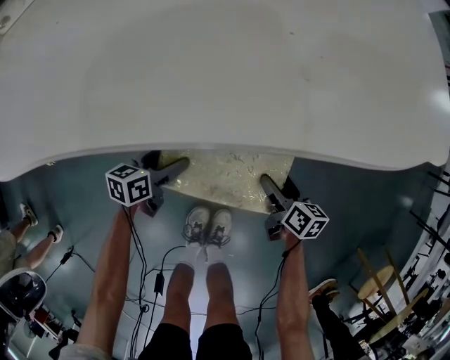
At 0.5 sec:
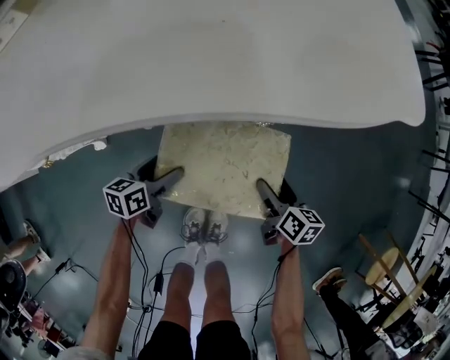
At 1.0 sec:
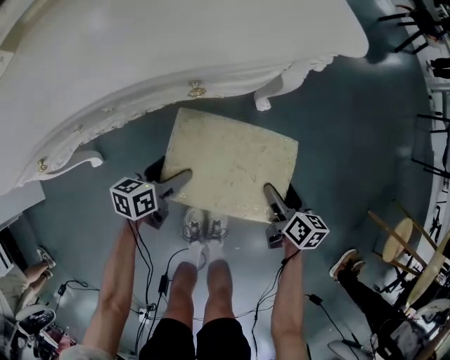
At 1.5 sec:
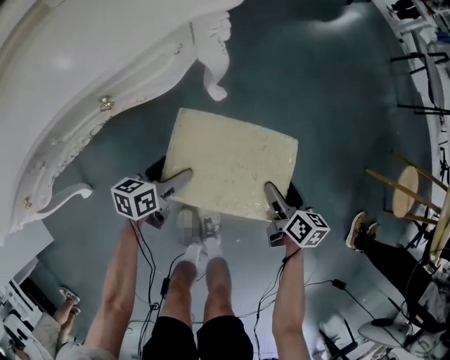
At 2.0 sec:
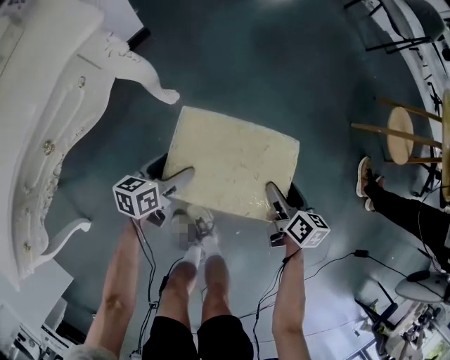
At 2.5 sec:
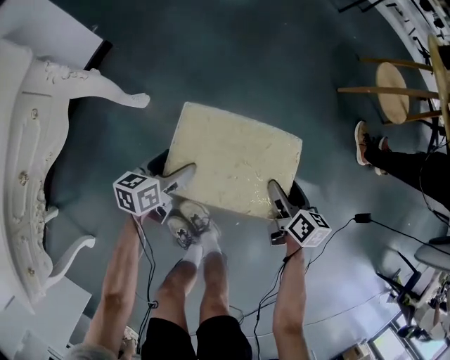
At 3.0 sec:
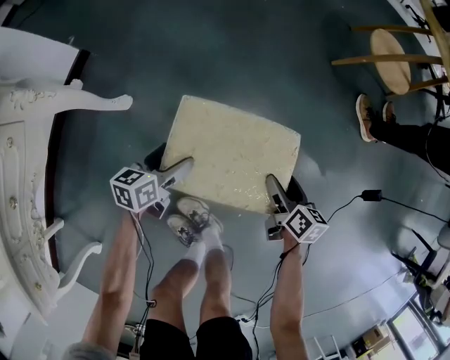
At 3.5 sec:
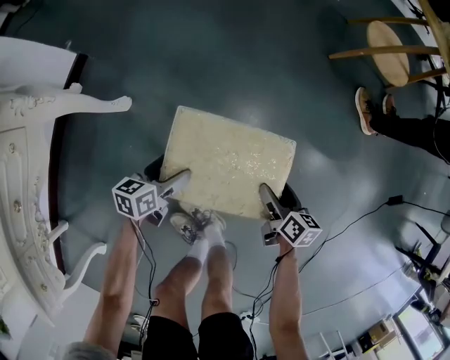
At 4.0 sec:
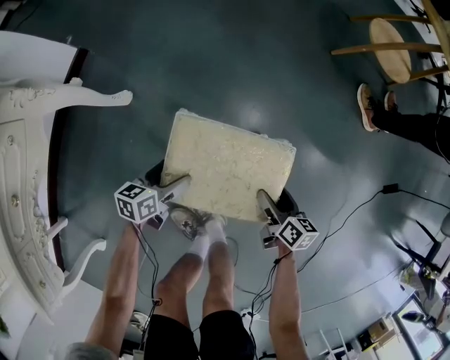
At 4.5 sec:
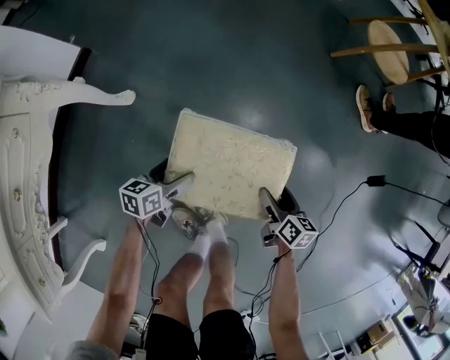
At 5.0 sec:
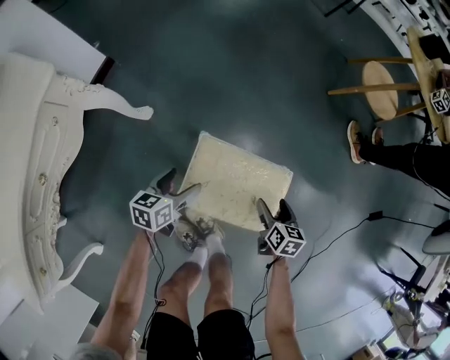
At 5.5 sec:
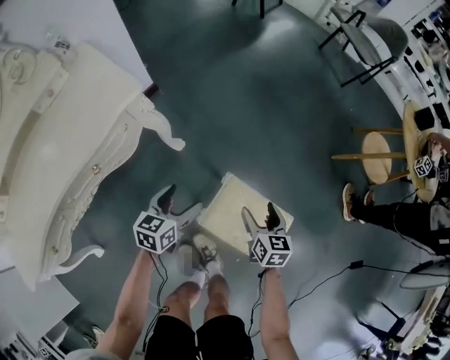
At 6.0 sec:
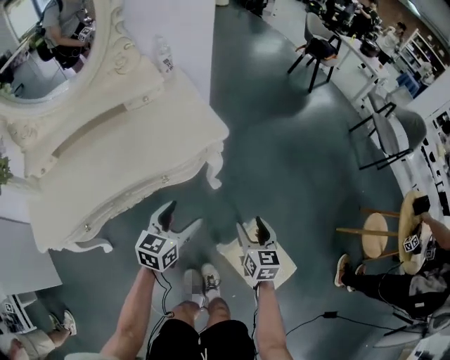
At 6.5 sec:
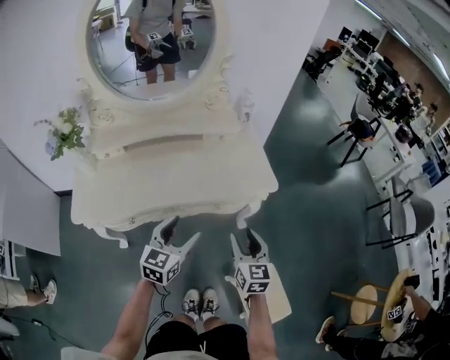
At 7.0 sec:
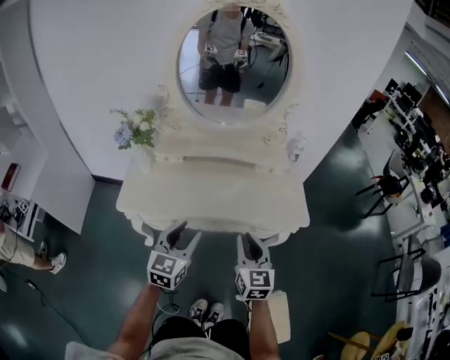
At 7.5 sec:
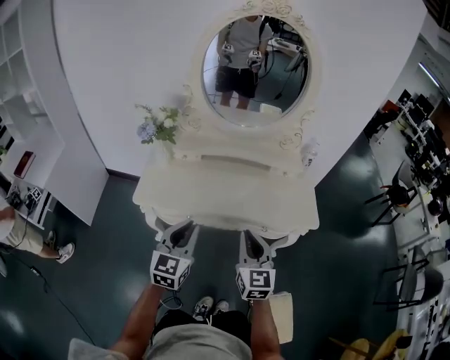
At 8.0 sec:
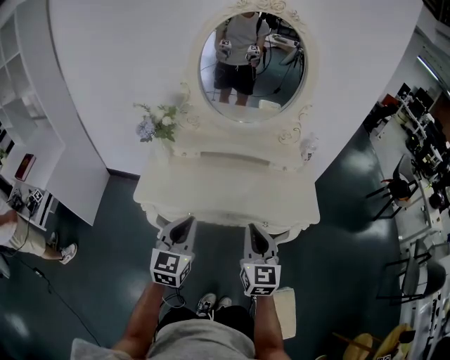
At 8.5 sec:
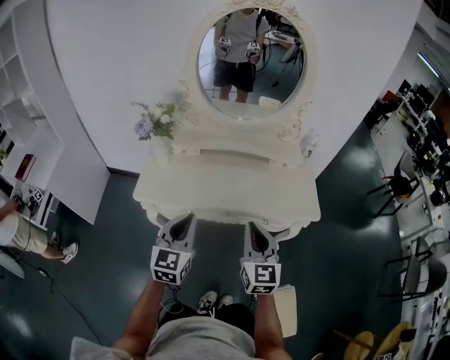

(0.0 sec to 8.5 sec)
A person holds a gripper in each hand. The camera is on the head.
0.0 sec - 2.0 sec: The two grippers travel together, roughly 40 cm. The right gripper rotates some 50 degrees. Meanwhile the left gripper swivels about 40 degrees.
2.0 sec - 4.0 sec: The left gripper goes about 15 cm to the right and downward, and rotates approximately 20 degrees; the right gripper is displaced to the right, backward and downward by some 20 cm.
4.0 sec - 6.5 sec: Both grippers are carried about 50 cm. Both grippers travel together upward, about 50 cm. The right gripper twists about 70 degrees counterclockwise, seen from behind, and closes; the left gripper swivels some 70 degrees.
6.5 sec - 8.5 sec: Both grippers travel together to the left and upward, roughly 25 cm. The left gripper turns by some 30 degrees, and closes up, while the right gripper changes its angle by some 20 degrees, and closes up.

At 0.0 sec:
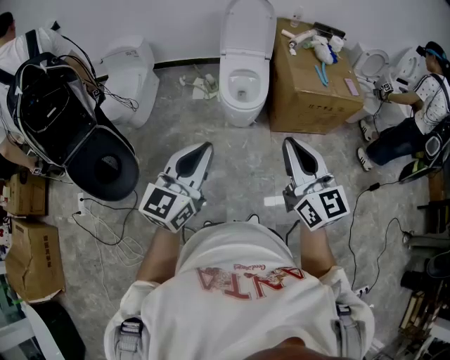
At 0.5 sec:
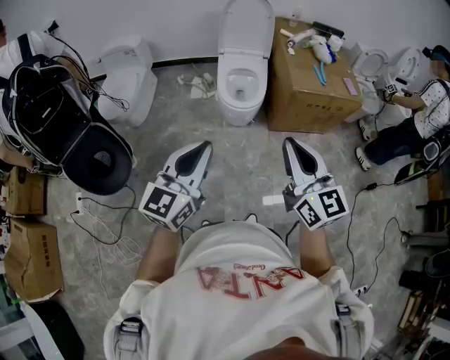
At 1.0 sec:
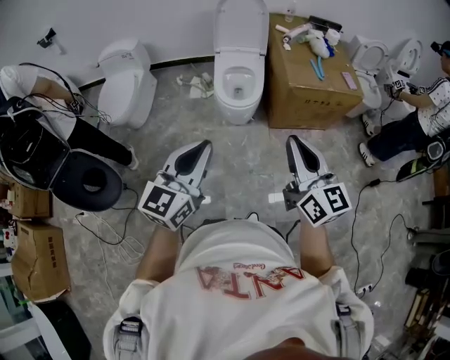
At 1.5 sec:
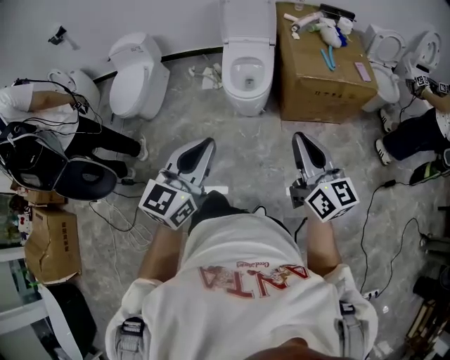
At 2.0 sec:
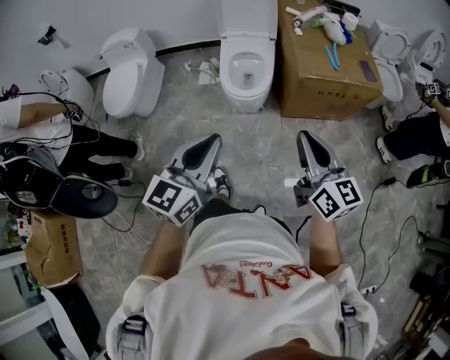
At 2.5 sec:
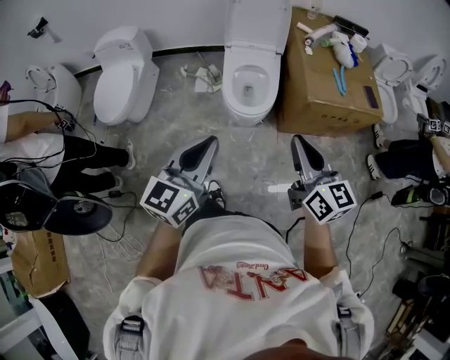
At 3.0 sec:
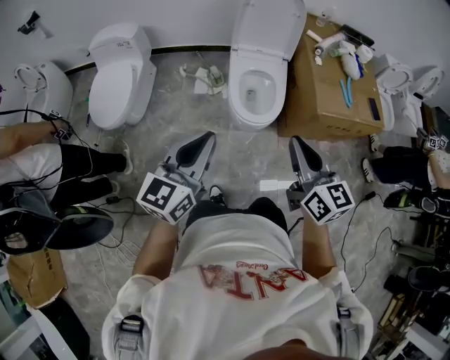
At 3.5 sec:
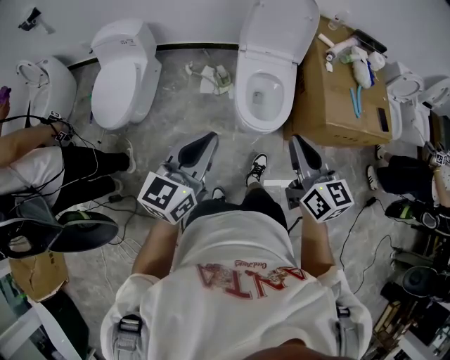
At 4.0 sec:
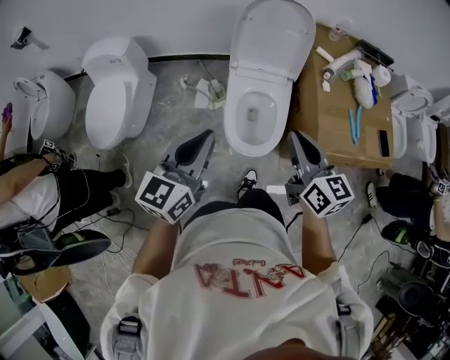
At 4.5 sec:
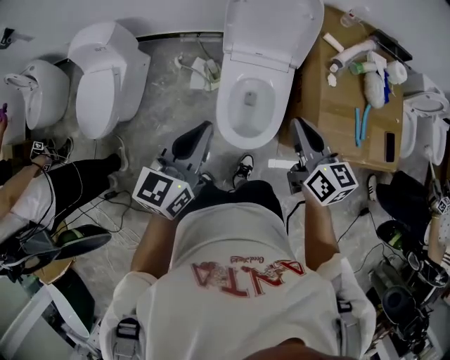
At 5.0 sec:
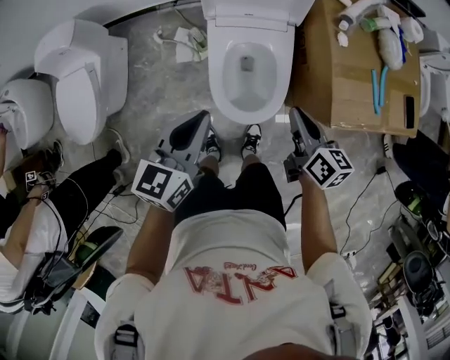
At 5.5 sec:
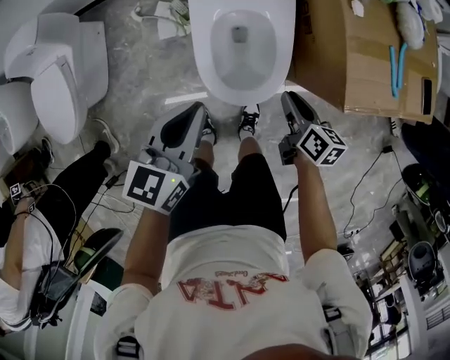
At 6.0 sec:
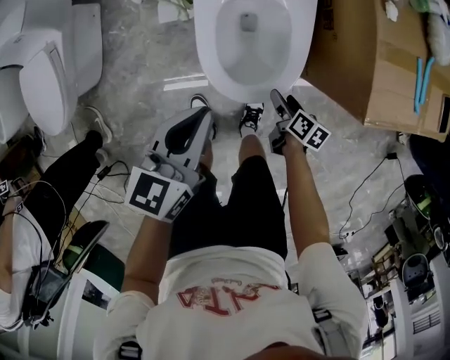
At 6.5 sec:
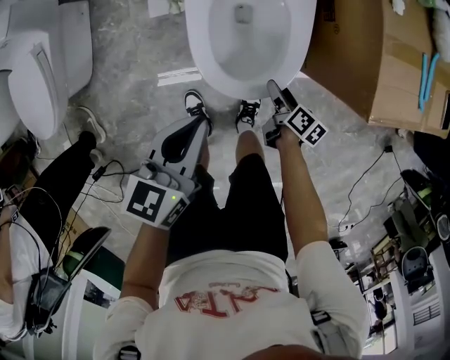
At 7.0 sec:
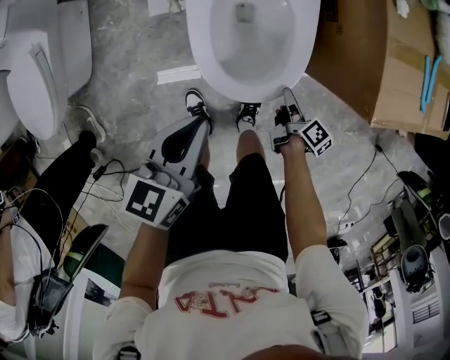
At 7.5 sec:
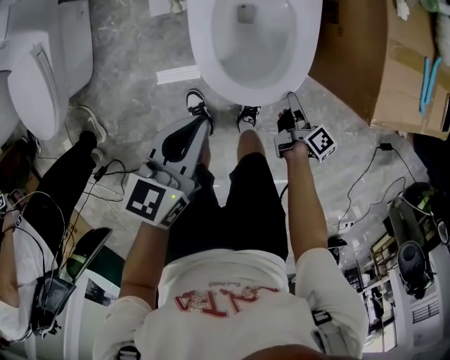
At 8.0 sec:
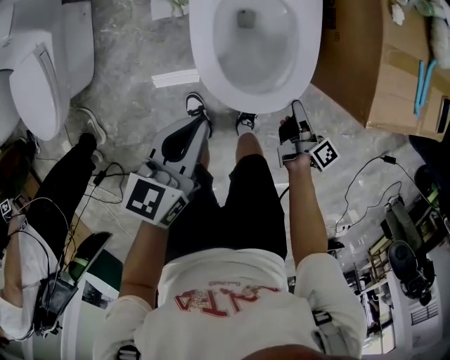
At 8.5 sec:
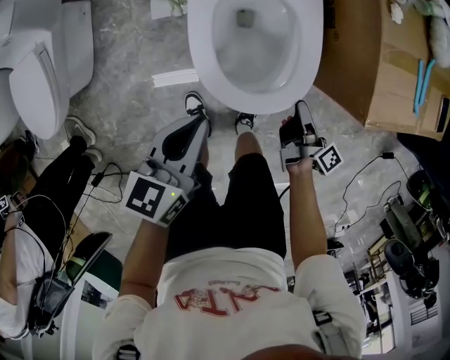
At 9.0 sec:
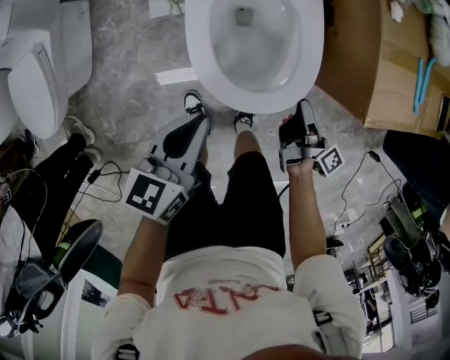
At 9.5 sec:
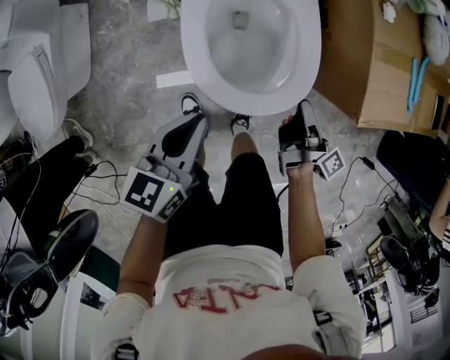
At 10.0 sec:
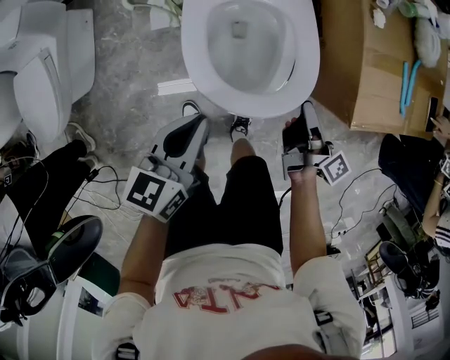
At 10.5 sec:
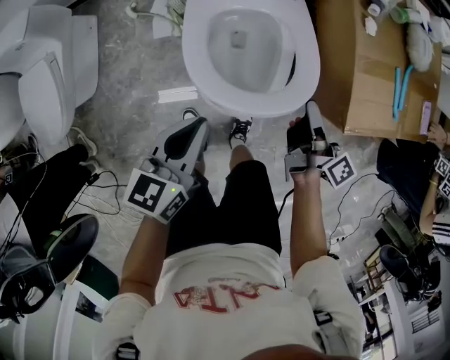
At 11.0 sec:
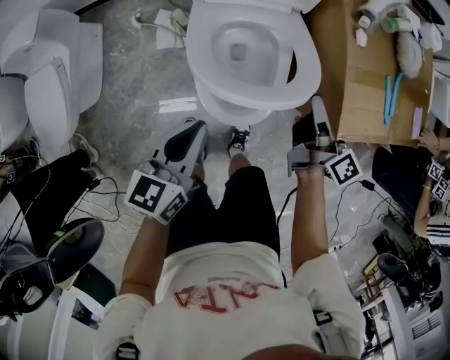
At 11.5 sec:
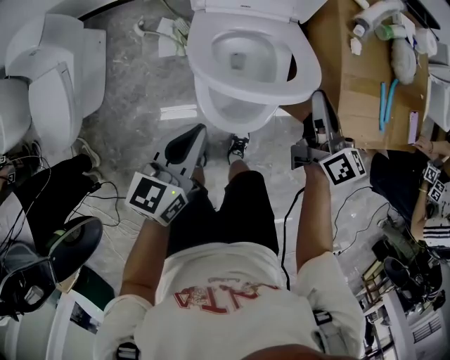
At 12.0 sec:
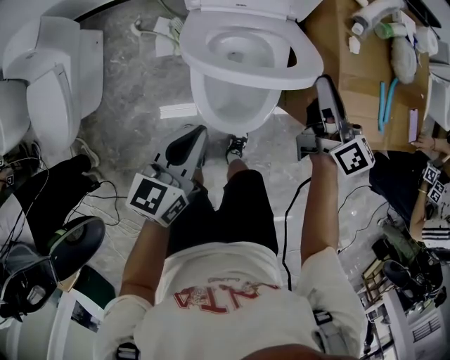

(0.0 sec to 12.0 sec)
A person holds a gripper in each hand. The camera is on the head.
0.0 sec - 2.0 sec: The left gripper moves to the right and forward, roughly 15 cm. Meanwhile the right gripper is displaced to the right, forward and downward by some 20 cm.
2.0 sec - 4.0 sec: Both grippers are carried forward, roughly 40 cm.
4.0 sec - 6.0 sec: The right gripper goes about 60 cm downward, tilts its fingers some 40 degrees downward, and opens its fingers. The left gripper is displaced downward by about 35 cm, and turns by roughly 30 degrees.
6.0 sec - 8.0 sec: The right gripper shifts roughly 5 cm upward, rotates approximately 40 degrees, and closes its fingers.
8.0 sec - 10.0 sec: The right gripper moves upward and forward, about 15 cm.
10.0 sec - 12.0 sec: The right gripper goes roughly 20 cm upward and forward, and swivels about 40 degrees, while the left gripper moves upward, about 5 cm.

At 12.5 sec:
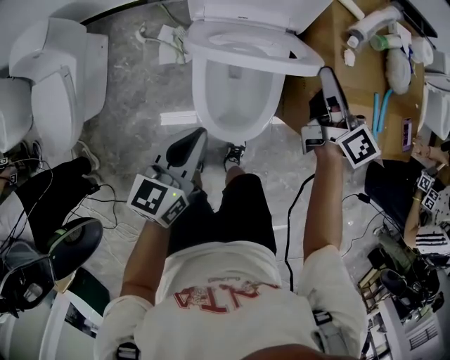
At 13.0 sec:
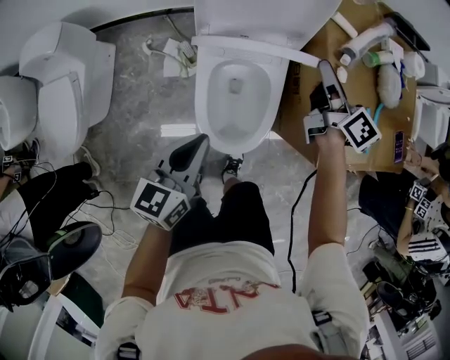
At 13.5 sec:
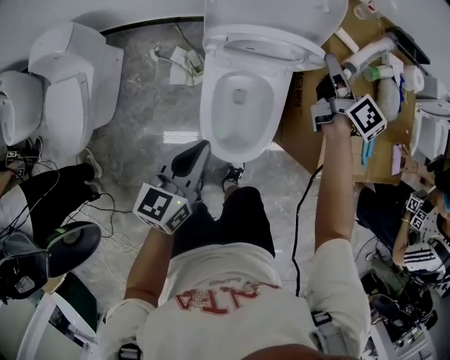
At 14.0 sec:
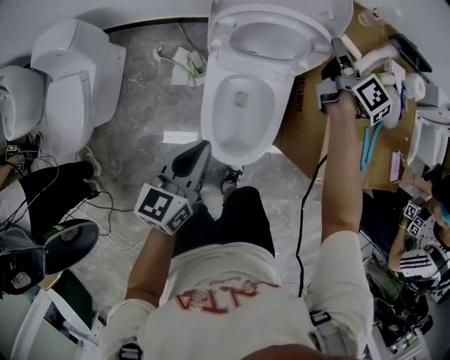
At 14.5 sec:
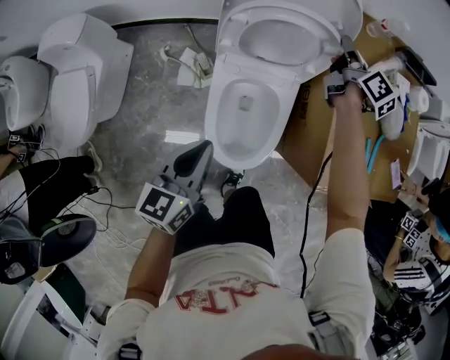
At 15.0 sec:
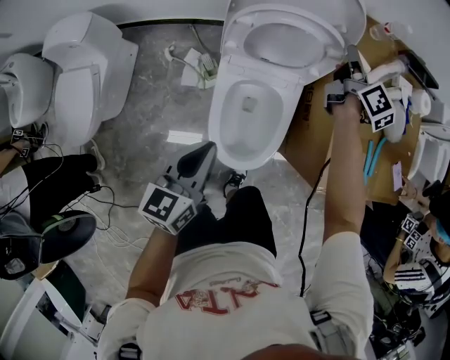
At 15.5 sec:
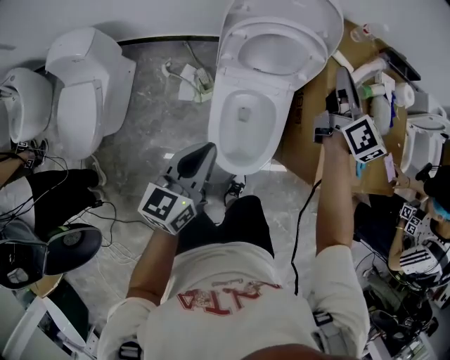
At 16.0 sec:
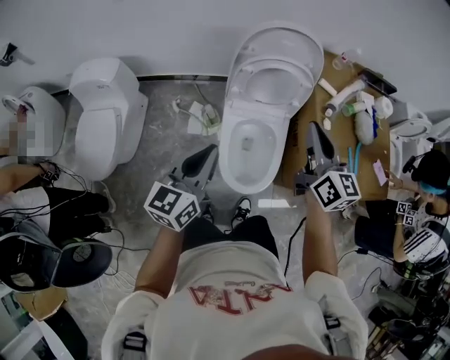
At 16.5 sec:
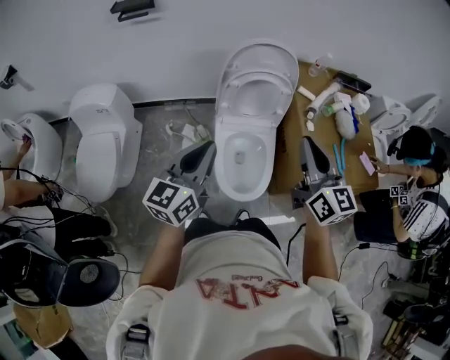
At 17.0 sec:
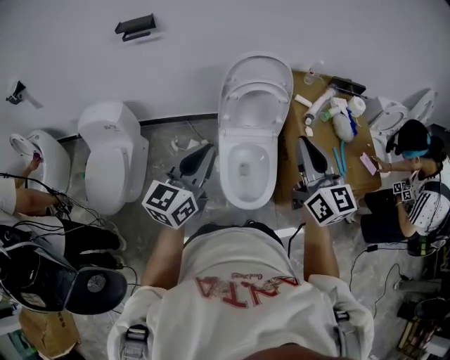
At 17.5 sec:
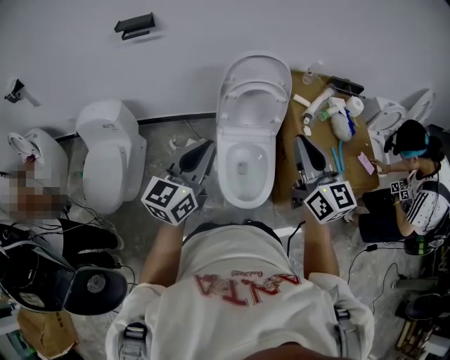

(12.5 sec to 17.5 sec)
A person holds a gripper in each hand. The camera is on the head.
12.5 sec - 15.0 sec: The right gripper goes about 20 cm forward. The left gripper changes place by some 5 cm.
15.0 sec - 17.5 sec: The right gripper is displaced backward and upward by approximately 50 cm, and changes its angle by roughly 40 degrees, while the left gripper shifts about 25 cm upward, and changes its angle by approximately 30 degrees.

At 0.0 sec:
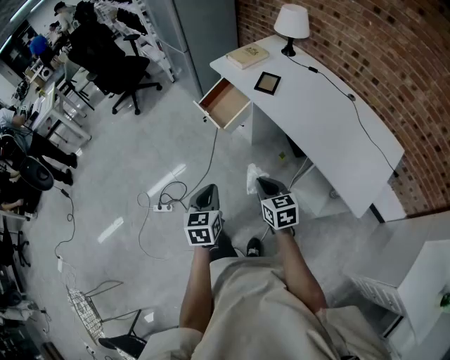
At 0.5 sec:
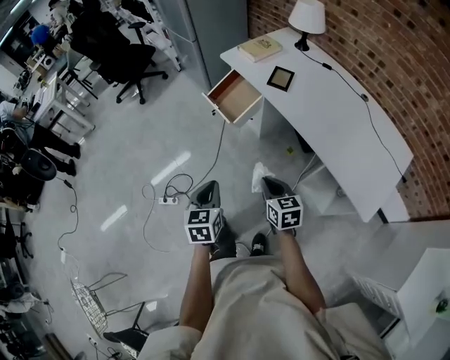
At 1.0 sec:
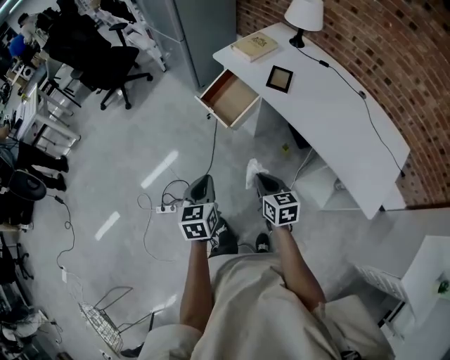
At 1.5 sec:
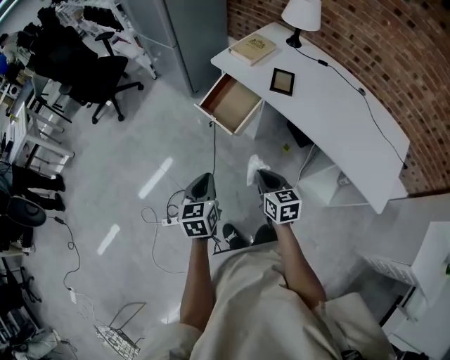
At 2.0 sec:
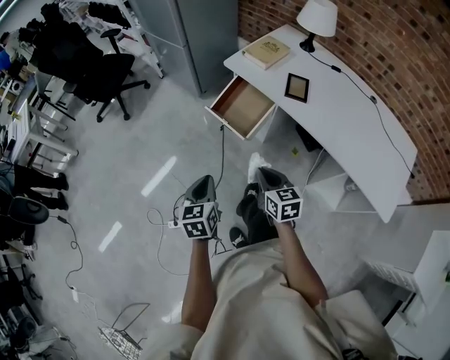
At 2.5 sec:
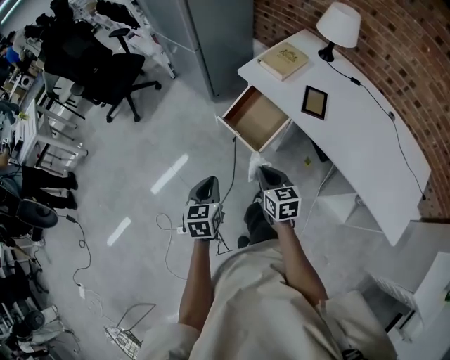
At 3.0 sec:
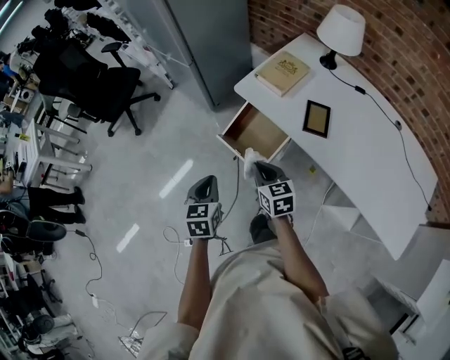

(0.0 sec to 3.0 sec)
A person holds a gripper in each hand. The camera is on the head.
0.0 sec - 1.5 sec: Both grippers travel together forward and to the left, about 25 cm.
1.5 sec - 3.0 sec: The grippers both shift forward by roughly 25 cm.
